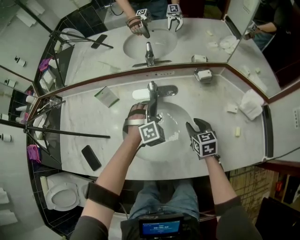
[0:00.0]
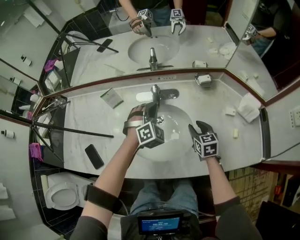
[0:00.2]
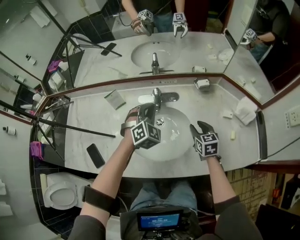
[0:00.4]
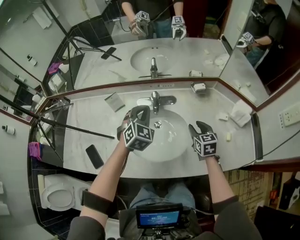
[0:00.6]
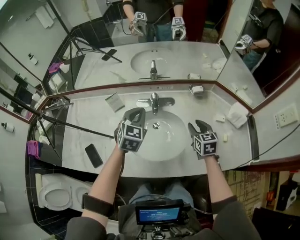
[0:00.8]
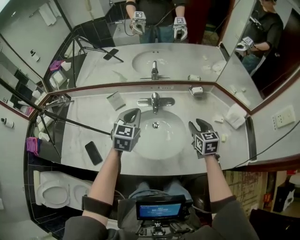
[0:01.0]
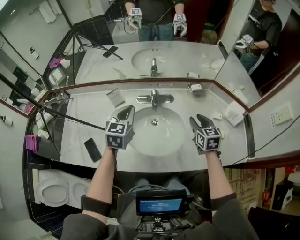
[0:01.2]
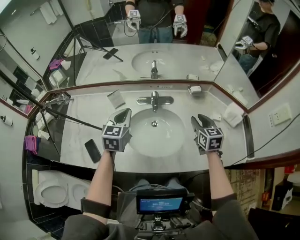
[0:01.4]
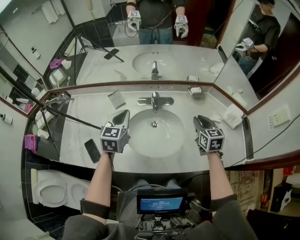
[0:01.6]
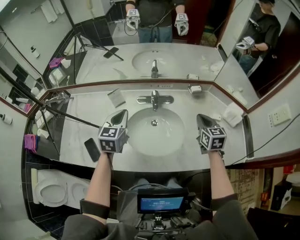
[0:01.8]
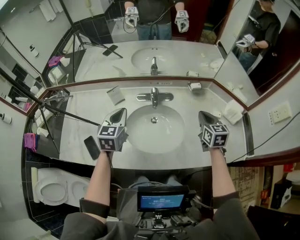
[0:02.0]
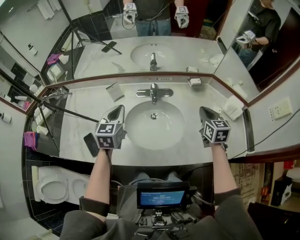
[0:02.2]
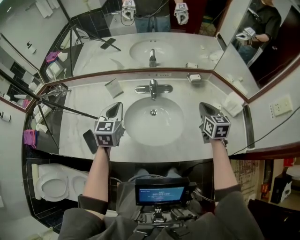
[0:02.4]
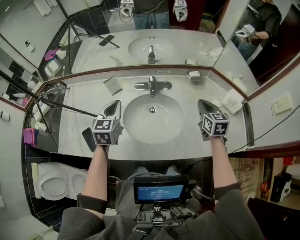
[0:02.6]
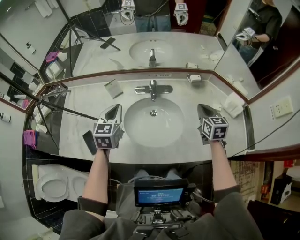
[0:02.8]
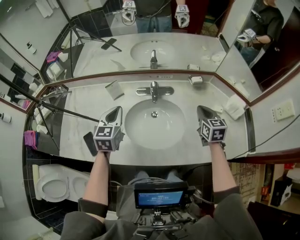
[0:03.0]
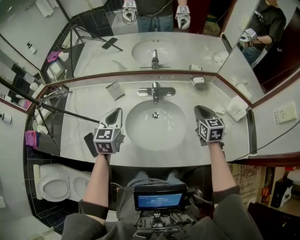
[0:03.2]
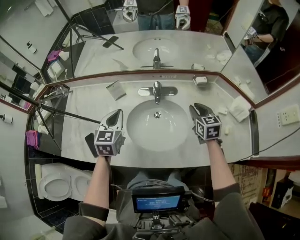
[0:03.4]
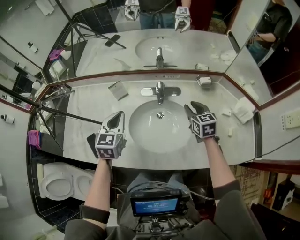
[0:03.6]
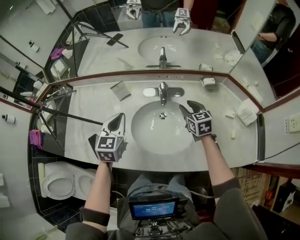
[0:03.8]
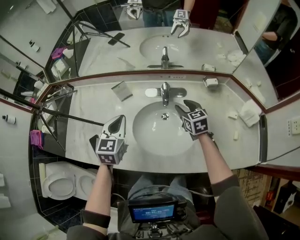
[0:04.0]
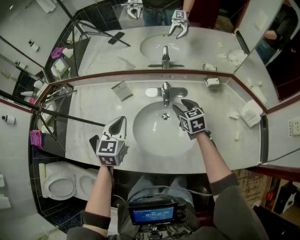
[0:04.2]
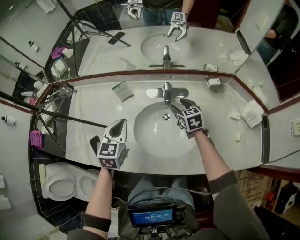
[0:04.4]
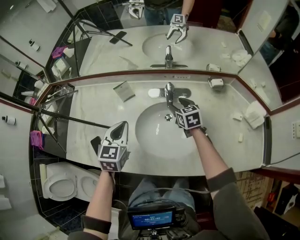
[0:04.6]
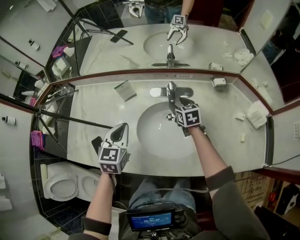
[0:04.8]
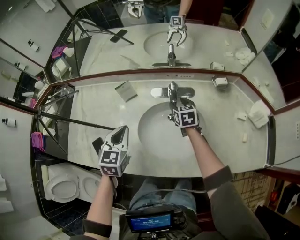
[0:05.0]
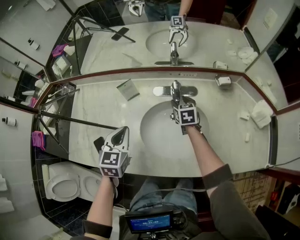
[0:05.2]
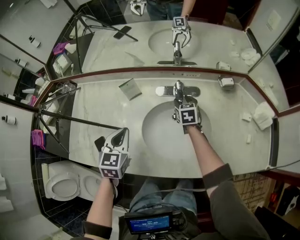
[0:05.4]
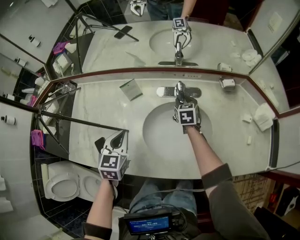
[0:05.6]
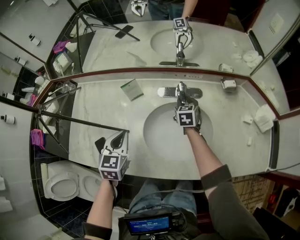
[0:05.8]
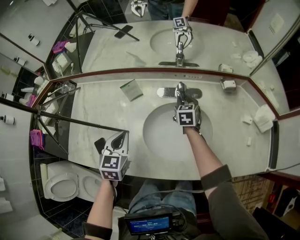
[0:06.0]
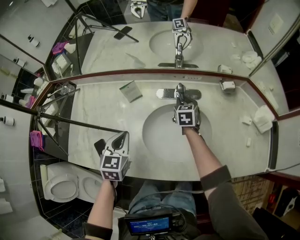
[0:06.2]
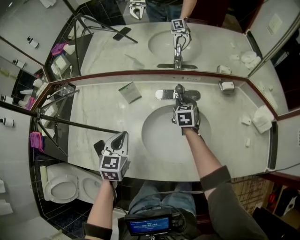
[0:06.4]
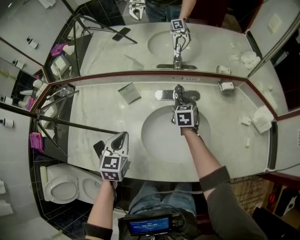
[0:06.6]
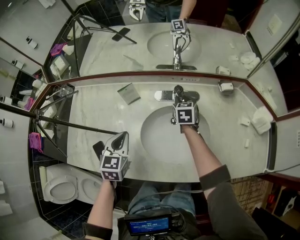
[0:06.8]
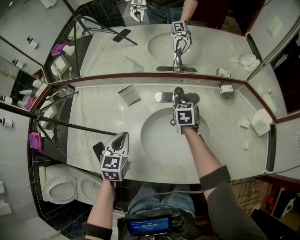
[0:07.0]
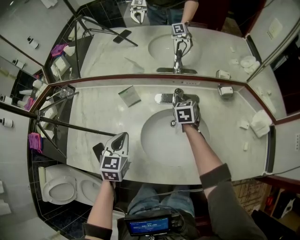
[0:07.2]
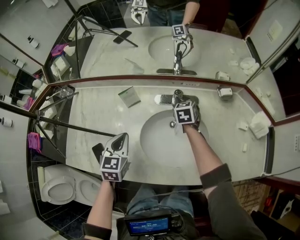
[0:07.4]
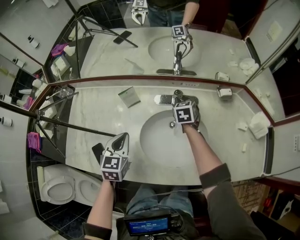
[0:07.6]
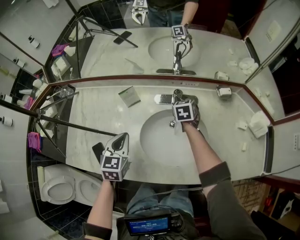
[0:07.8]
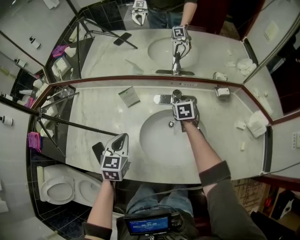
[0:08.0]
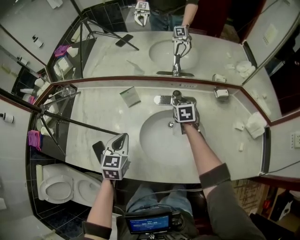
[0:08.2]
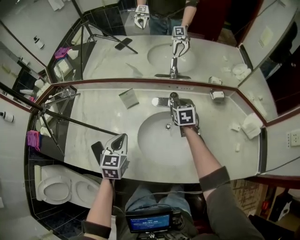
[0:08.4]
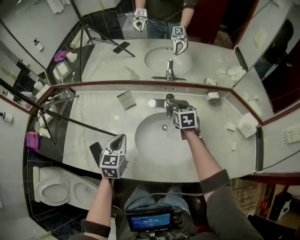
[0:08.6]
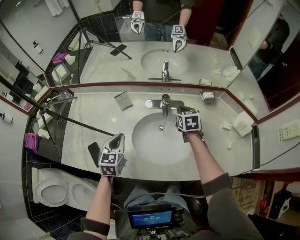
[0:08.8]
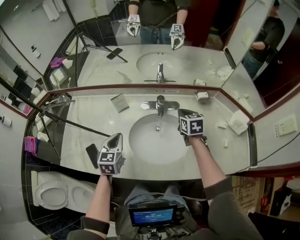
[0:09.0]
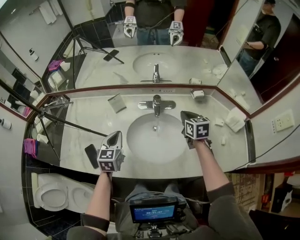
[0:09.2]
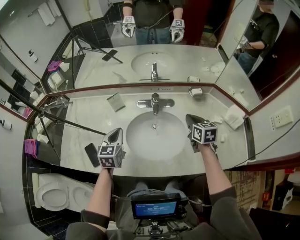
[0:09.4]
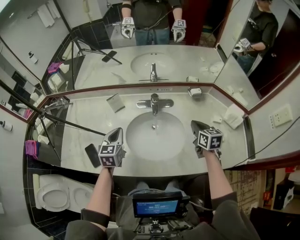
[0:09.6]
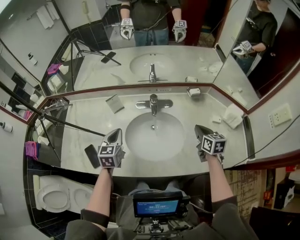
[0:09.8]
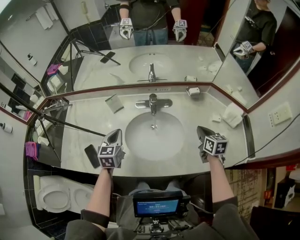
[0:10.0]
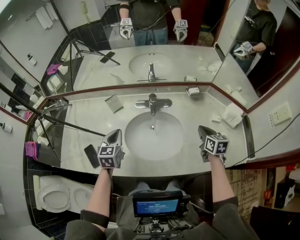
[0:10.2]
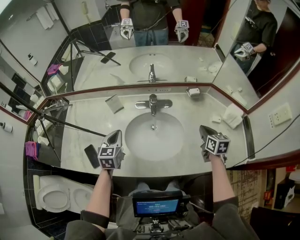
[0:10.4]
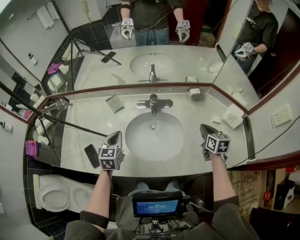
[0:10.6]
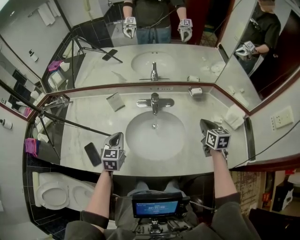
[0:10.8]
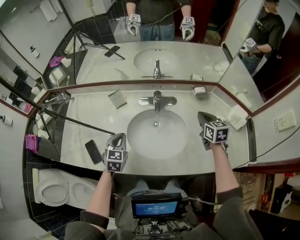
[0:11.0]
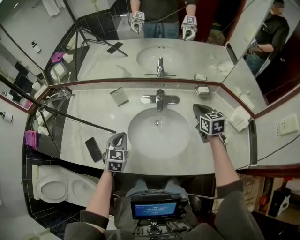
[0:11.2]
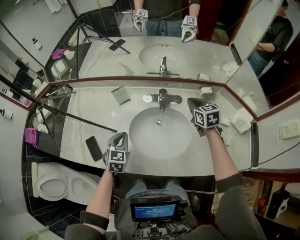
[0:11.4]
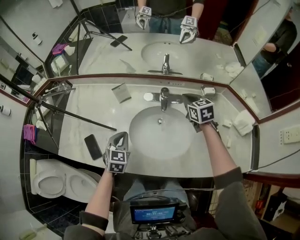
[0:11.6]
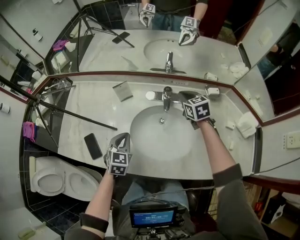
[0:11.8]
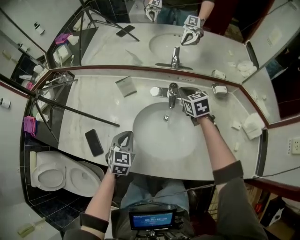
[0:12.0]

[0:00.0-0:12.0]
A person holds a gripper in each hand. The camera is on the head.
0:00.0 to 0:01.6: The left gripper travels upward, to the left and backward by approximately 25 cm, and twists about 60 degrees counterclockwise, seen from behind; the right gripper is displaced upward by about 20 cm, and closes its fingers.
0:01.6 to 0:03.0: The grippers move only a little.
0:03.0 to 0:04.4: The right gripper goes roughly 25 cm to the left, forward and downward, and opens up; the left gripper ends up roughly 5 cm from where it was.
0:04.4 to 0:06.0: The left gripper moves to the left, about 5 cm; the right gripper goes some 5 cm forward, and closes.
0:06.0 to 0:07.6: The grippers stay close to where they were, moving slightly.
0:07.6 to 0:09.0: The left gripper moves approximately 5 cm. The right gripper moves backward, upward and to the right, about 15 cm, and closes up.
0:09.0 to 0:10.4: The right gripper heads to the right and backward, covering about 20 cm.
0:10.4 to 0:12.0: The left gripper is displaced downward by some 10 cm. The right gripper shifts roughly 30 cm forward and to the left, and changes its angle by roughly 30 degrees.

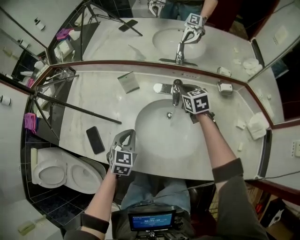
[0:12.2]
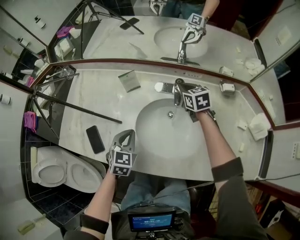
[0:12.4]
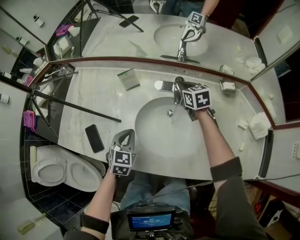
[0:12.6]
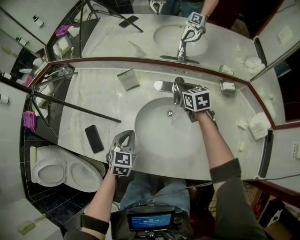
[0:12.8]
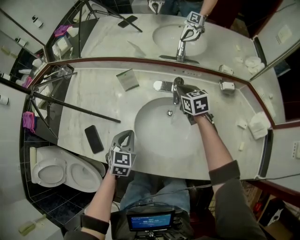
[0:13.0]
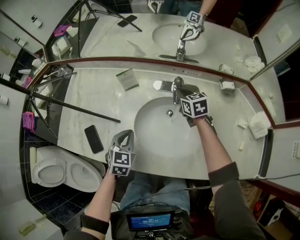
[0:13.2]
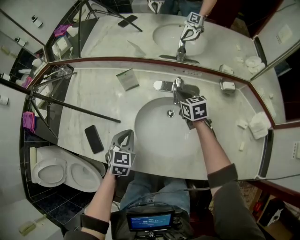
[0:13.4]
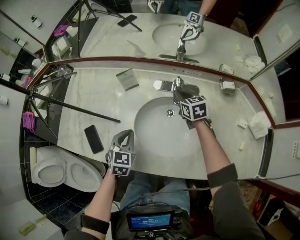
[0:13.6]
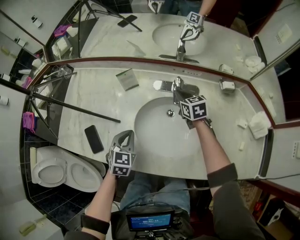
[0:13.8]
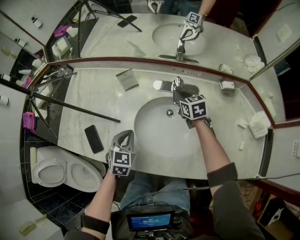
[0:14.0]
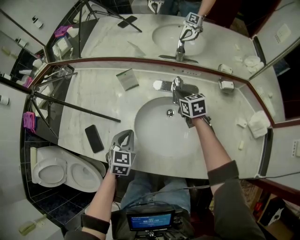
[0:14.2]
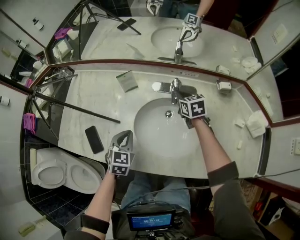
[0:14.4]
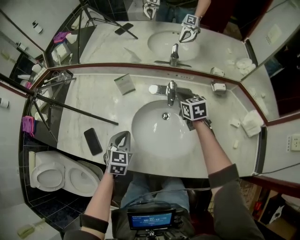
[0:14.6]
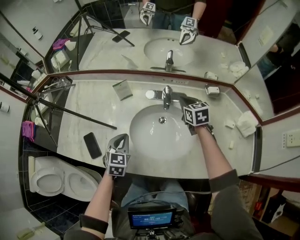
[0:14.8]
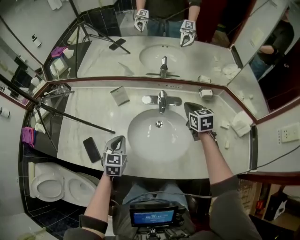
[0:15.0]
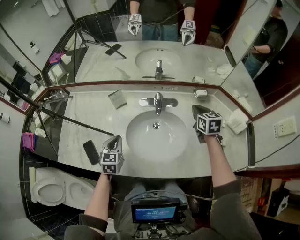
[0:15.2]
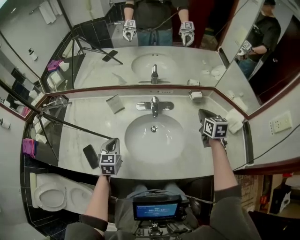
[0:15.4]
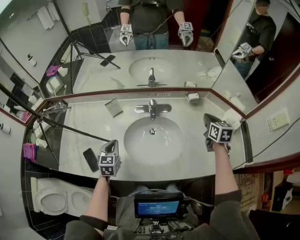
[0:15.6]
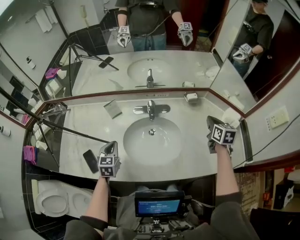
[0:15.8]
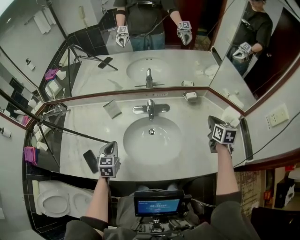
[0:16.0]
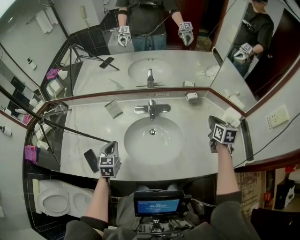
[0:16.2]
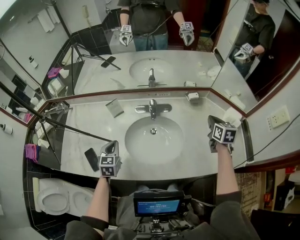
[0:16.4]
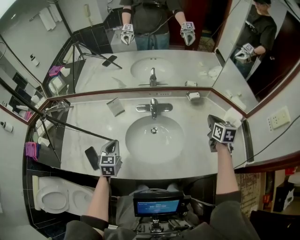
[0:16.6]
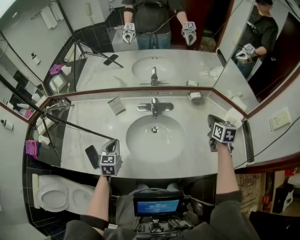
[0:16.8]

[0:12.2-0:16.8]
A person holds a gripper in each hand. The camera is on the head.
0:12.2 to 0:13.8: The grippers move only a little.
0:13.8 to 0:15.2: The left gripper is displaced upward by about 5 cm; the right gripper goes some 25 cm to the right, upward and backward.
0:15.2 to 0:16.8: The right gripper heads to the right and backward, covering about 15 cm.

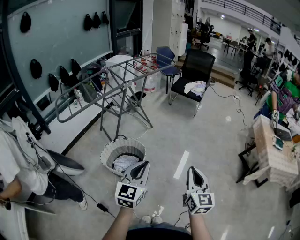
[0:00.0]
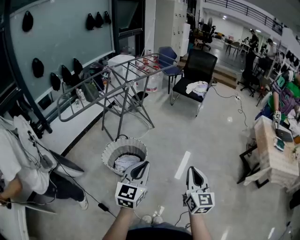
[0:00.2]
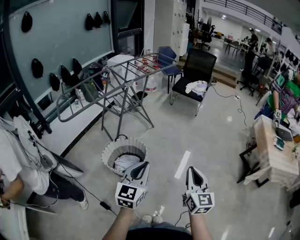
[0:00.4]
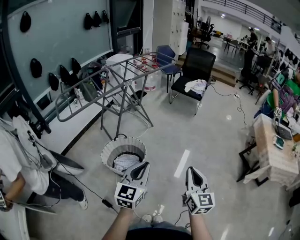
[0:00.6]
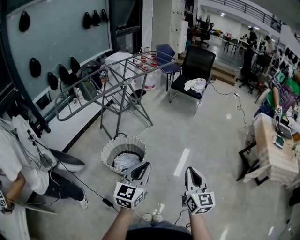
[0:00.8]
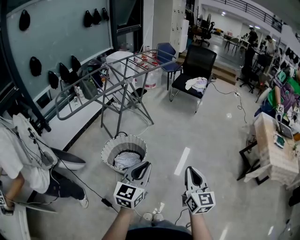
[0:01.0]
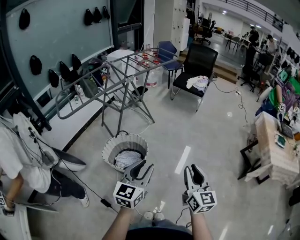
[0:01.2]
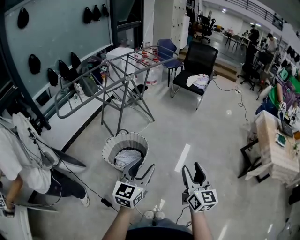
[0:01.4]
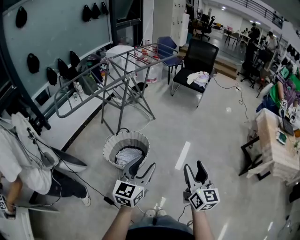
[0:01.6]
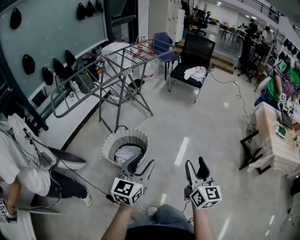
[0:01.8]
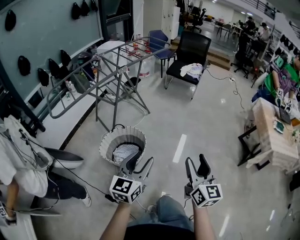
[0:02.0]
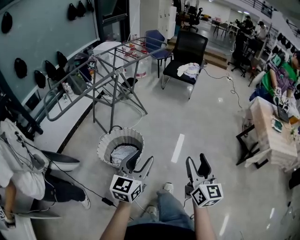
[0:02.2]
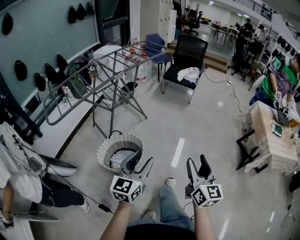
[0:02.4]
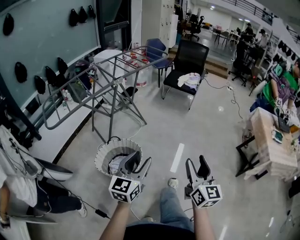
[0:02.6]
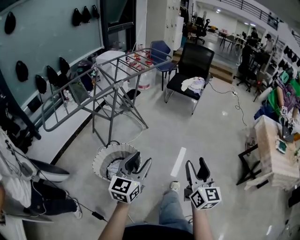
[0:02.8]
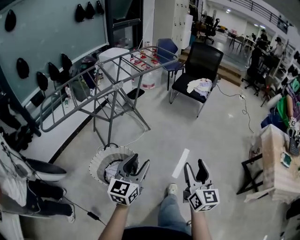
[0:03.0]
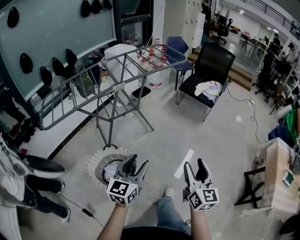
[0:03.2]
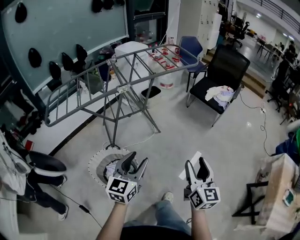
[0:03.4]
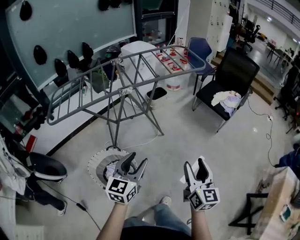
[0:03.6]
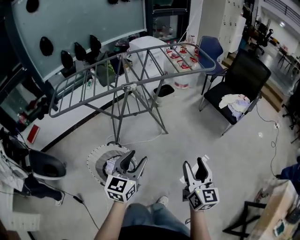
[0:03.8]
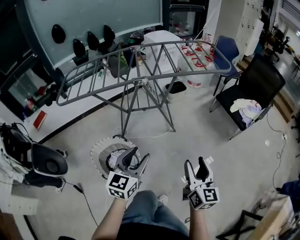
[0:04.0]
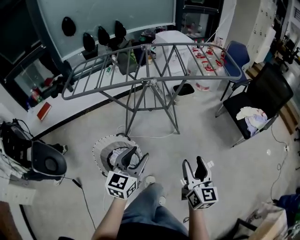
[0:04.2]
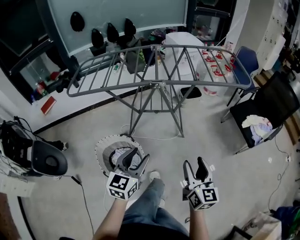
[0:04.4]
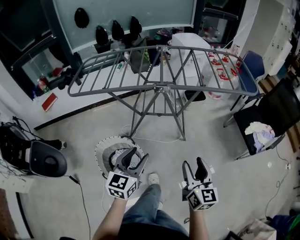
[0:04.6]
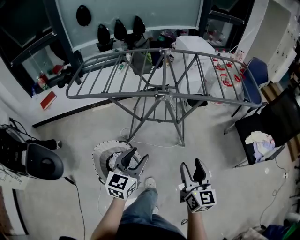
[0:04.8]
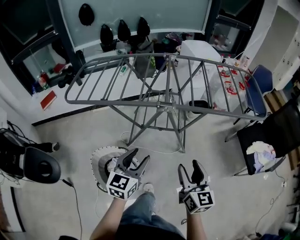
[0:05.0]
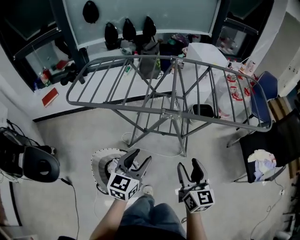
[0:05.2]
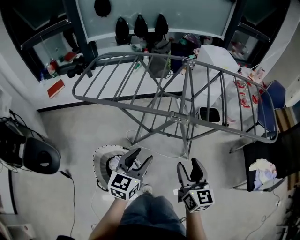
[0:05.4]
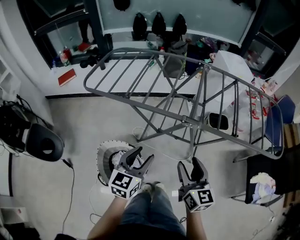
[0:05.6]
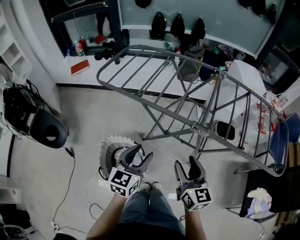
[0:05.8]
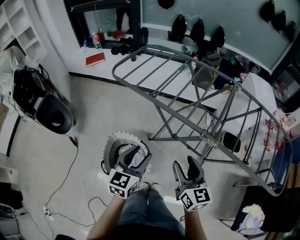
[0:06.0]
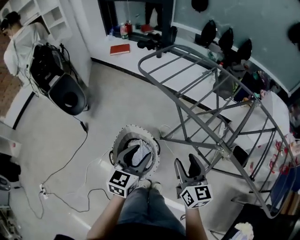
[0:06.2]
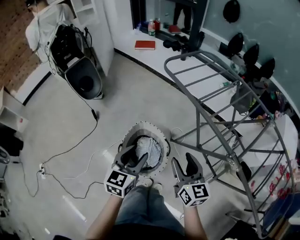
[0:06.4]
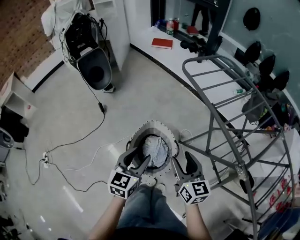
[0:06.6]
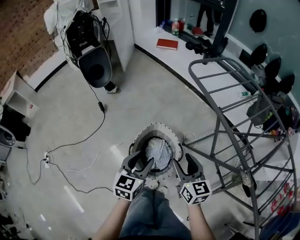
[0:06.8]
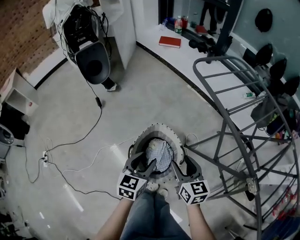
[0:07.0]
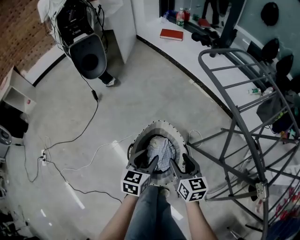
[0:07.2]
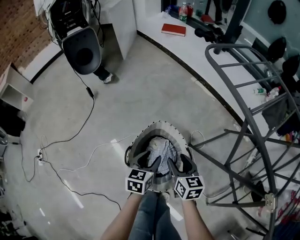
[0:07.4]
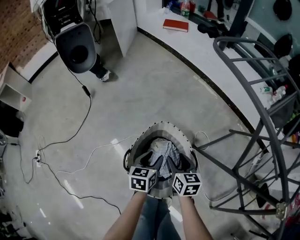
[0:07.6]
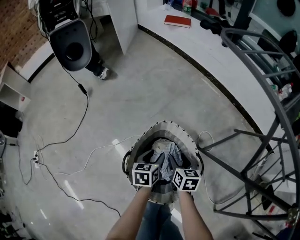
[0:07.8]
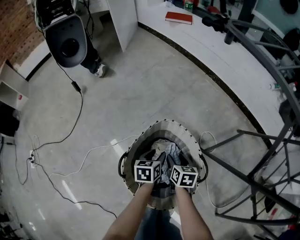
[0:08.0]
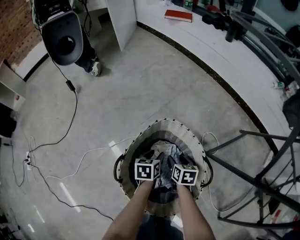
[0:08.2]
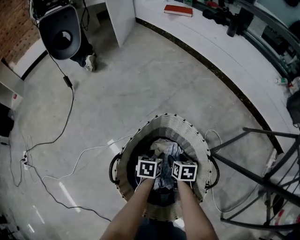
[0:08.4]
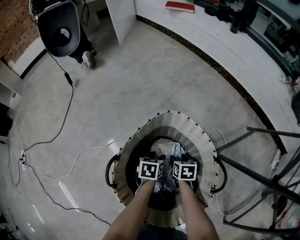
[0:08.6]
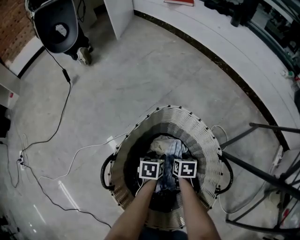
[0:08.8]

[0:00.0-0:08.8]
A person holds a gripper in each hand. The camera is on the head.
0:00.0 to 0:01.4: The right gripper opens up. Meanwhile the left gripper opens.
0:01.4 to 0:03.0: Both grippers move forward, about 25 cm.
0:03.0 to 0:04.4: The right gripper moves some 35 cm, and rotates roughly 40 degrees. Meanwhile the left gripper ends up about 25 cm from where it was, and rotates approximately 40 degrees.
0:04.4 to 0:05.8: The left gripper moves some 25 cm, and turns by about 30 degrees. Meanwhile the right gripper shifts by roughly 30 cm, and rotates some 40 degrees.
0:05.8 to 0:07.4: Both grippers travel together downward, approximately 30 cm. The left gripper rotates approximately 50 degrees; the right gripper turns by approximately 50 degrees.
0:07.4 to 0:08.8: Both grippers move downward, approximately 50 cm. The right gripper changes its angle by roughly 30 degrees, while the left gripper changes its angle by some 20 degrees.
